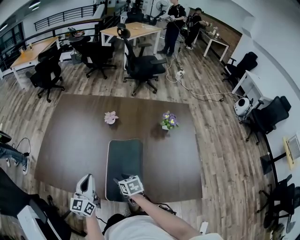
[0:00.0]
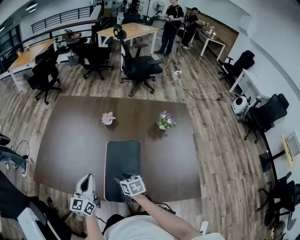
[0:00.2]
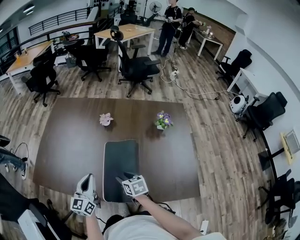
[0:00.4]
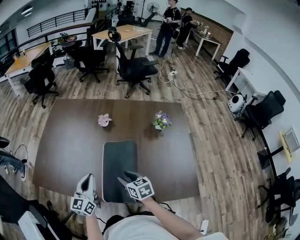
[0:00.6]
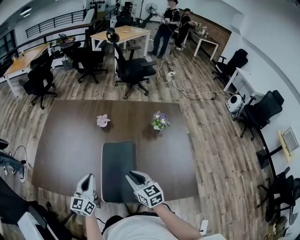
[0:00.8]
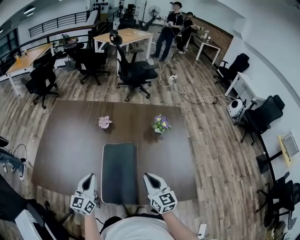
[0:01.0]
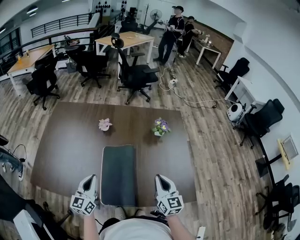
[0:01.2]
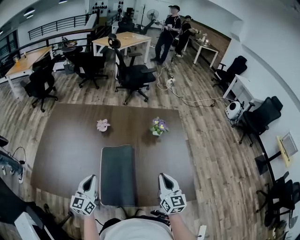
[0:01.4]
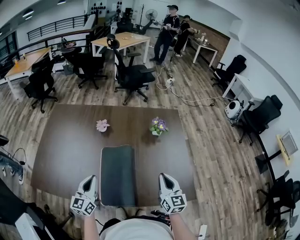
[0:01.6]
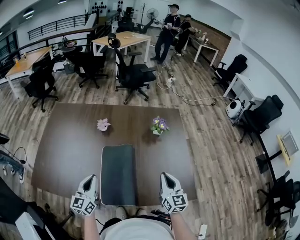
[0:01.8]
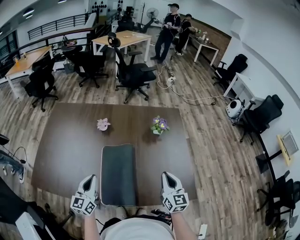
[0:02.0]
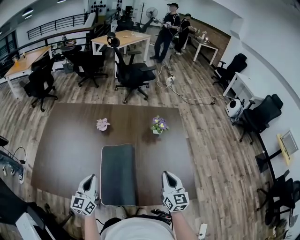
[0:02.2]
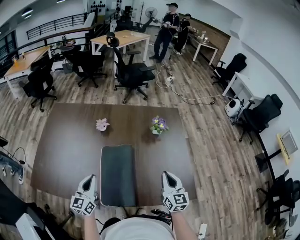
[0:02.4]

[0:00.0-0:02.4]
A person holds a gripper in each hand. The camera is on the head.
0:00.0 to 0:01.2: The right gripper is displaced to the right and upward by roughly 30 cm, angles its fingers upward, by roughly 40 degrees, and closes its fingers. Meanwhile the left gripper travels to the right by about 5 cm.
0:01.2 to 0:02.4: The grippers move only a little.

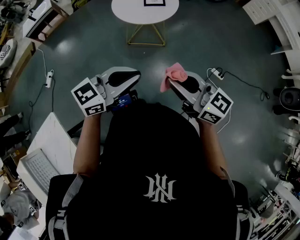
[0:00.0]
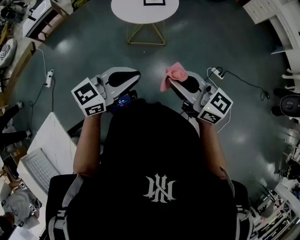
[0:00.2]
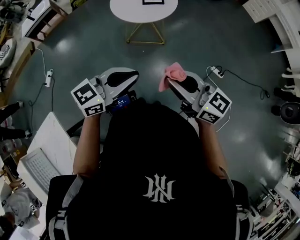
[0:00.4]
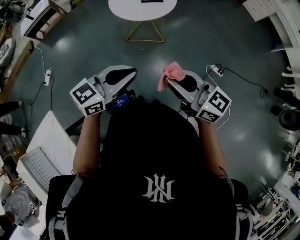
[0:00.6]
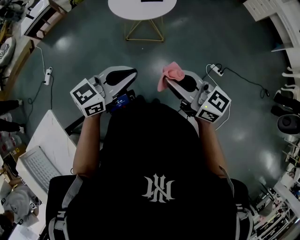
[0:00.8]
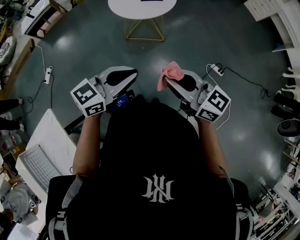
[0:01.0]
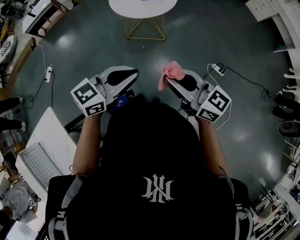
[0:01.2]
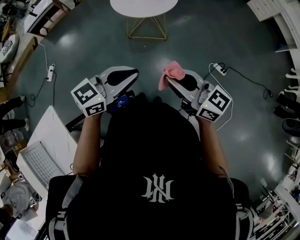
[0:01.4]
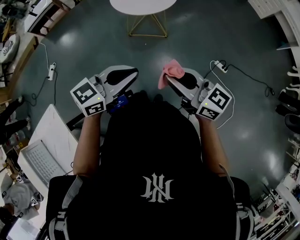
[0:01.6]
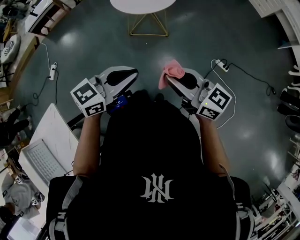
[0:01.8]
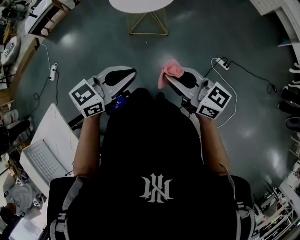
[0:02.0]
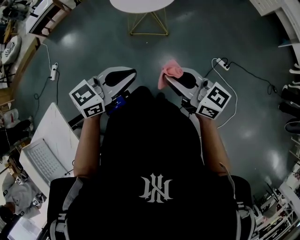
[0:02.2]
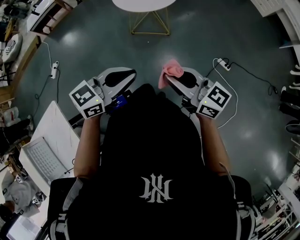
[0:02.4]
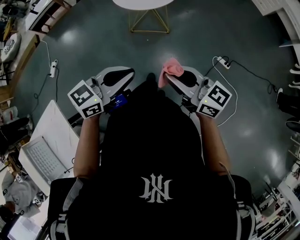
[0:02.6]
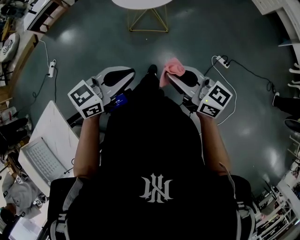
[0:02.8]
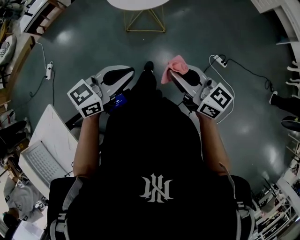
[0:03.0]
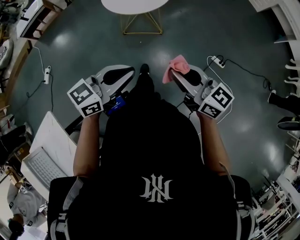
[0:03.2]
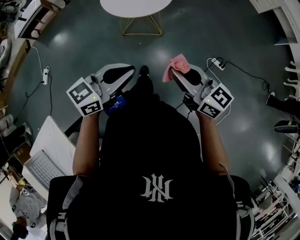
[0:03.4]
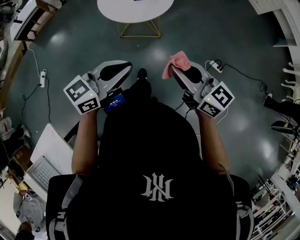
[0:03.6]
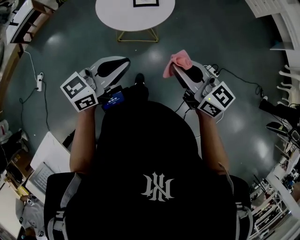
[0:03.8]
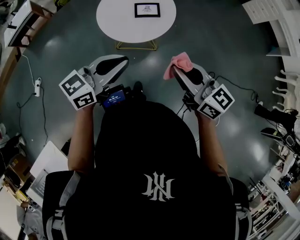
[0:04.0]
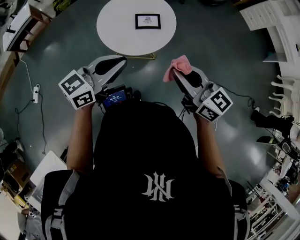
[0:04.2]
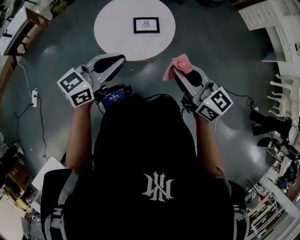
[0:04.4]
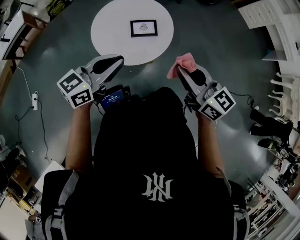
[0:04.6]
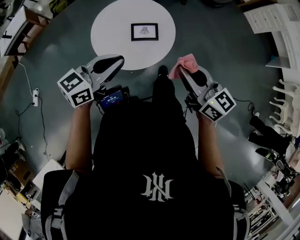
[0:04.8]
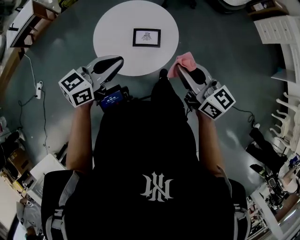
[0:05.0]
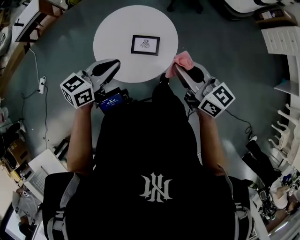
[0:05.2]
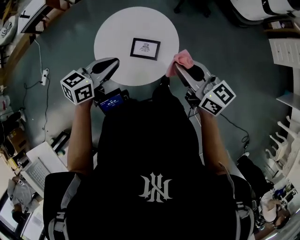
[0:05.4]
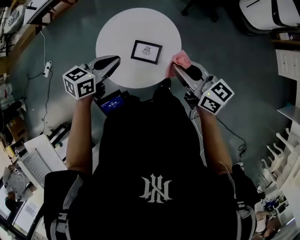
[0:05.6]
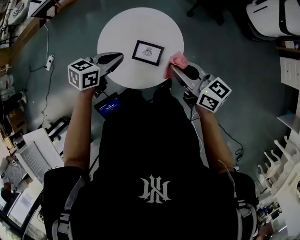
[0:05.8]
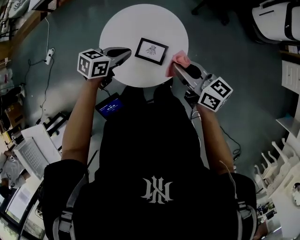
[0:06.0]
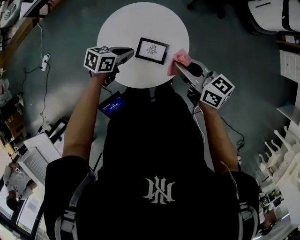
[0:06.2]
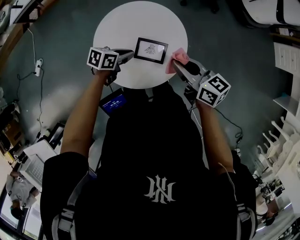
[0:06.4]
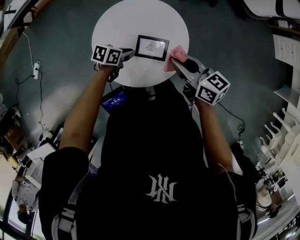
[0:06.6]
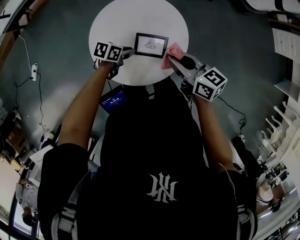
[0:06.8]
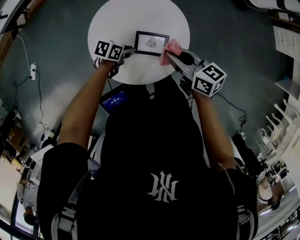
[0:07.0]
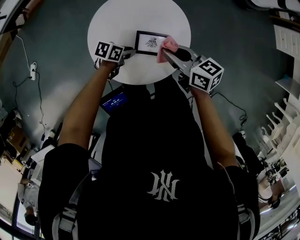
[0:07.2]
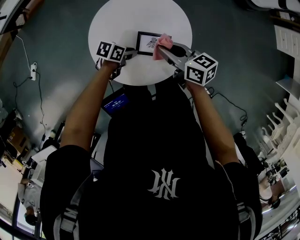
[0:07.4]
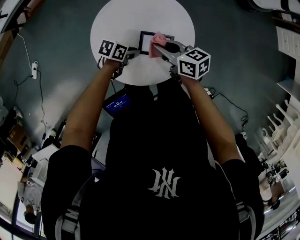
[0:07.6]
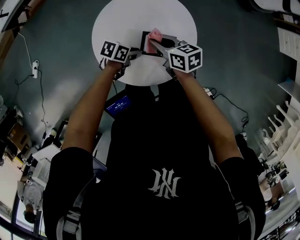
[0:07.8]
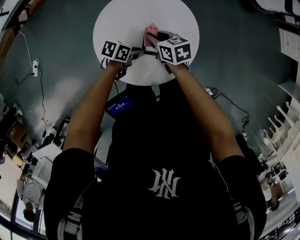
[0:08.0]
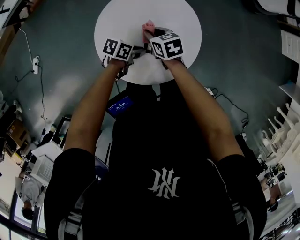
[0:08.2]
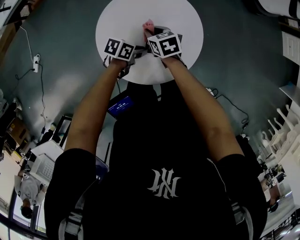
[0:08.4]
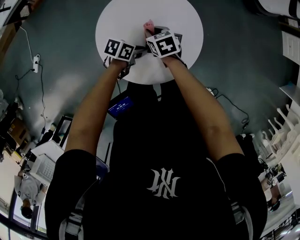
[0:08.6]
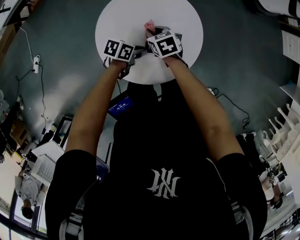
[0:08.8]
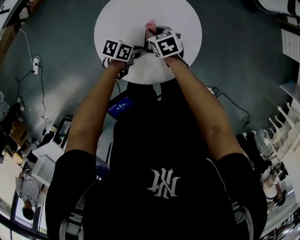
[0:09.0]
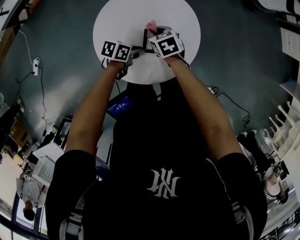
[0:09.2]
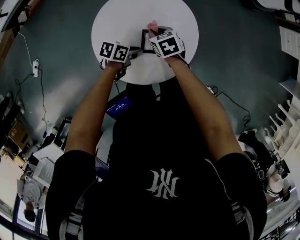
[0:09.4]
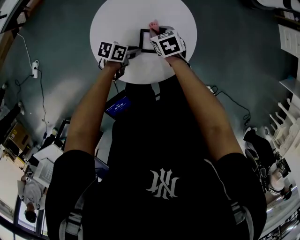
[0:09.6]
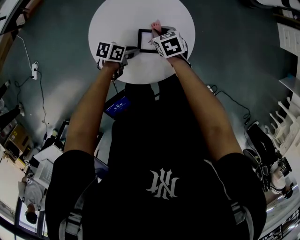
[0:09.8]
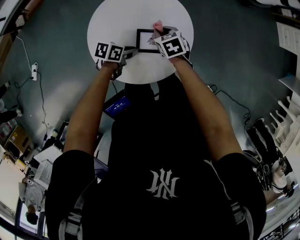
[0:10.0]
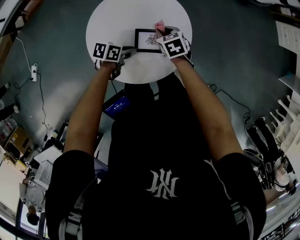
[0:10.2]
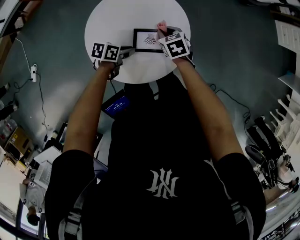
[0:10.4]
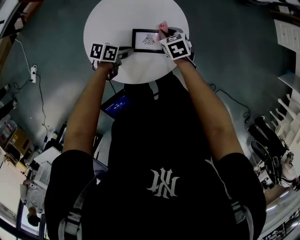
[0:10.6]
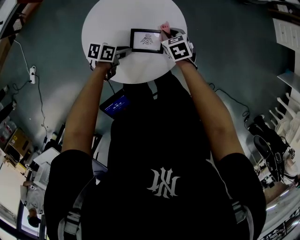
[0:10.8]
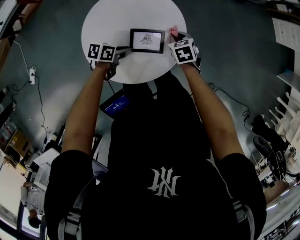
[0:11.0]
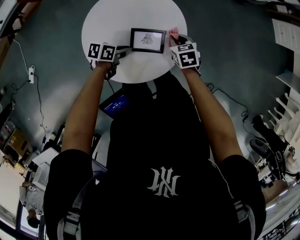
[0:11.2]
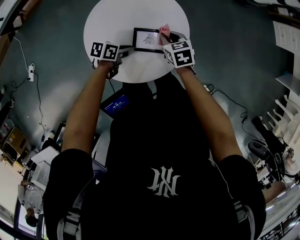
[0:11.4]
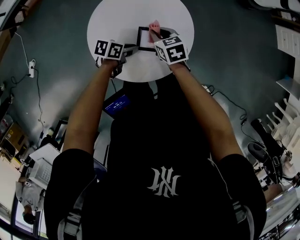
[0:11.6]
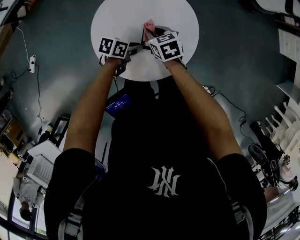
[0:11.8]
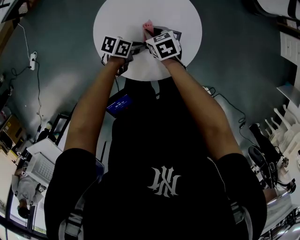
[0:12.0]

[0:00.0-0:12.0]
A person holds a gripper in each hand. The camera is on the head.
0:00.0 to 0:01.6: The grippers make only small movements.
0:01.6 to 0:03.0: The grippers make only small movements.
0:03.0 to 0:04.4: Both grippers move forward, some 40 cm.
0:04.4 to 0:06.0: The right gripper ends up about 35 cm from where it was, and rotates approximately 30 degrees. The left gripper ends up about 35 cm from where it was, and tips its fingers downward by roughly 30 degrees.
0:06.0 to 0:07.6: The grippers both shift downward by approximately 15 cm. The left gripper swivels roughly 30 degrees.
0:07.6 to 0:09.0: The right gripper goes approximately 10 cm downward, and changes its angle by roughly 30 degrees.
0:09.0 to 0:10.4: The right gripper shifts by some 10 cm.
0:10.4 to 0:12.0: The right gripper ends up about 10 cm from where it was.

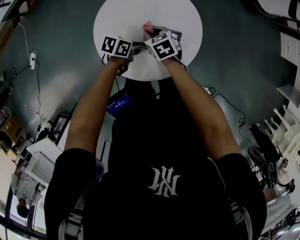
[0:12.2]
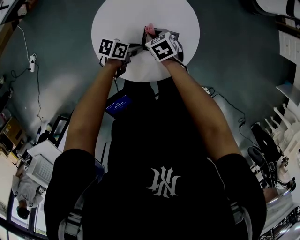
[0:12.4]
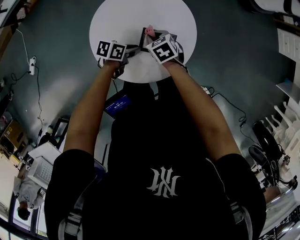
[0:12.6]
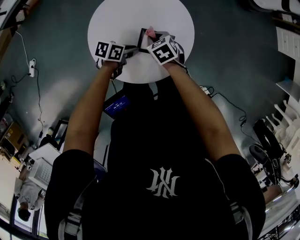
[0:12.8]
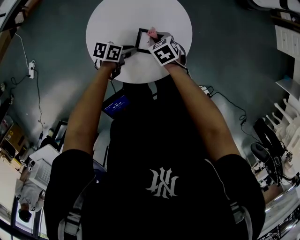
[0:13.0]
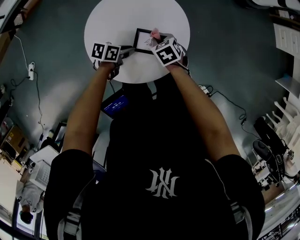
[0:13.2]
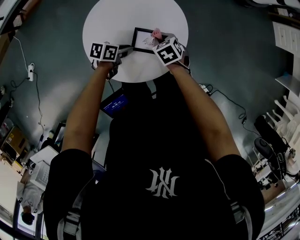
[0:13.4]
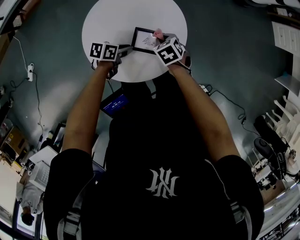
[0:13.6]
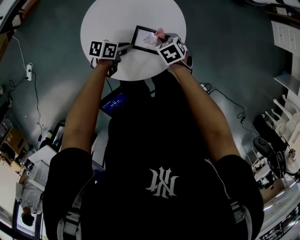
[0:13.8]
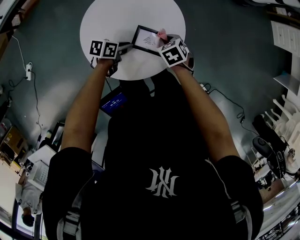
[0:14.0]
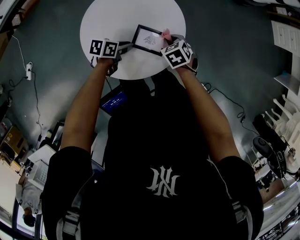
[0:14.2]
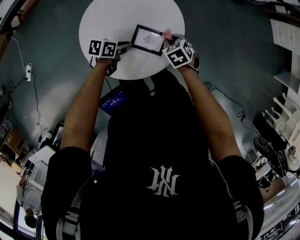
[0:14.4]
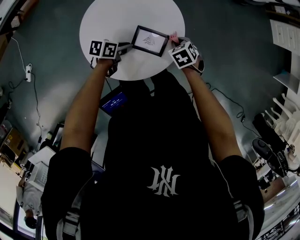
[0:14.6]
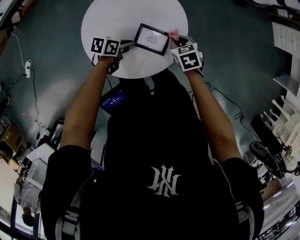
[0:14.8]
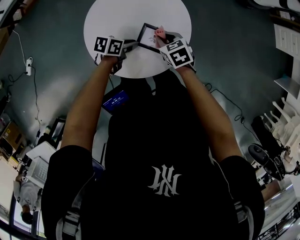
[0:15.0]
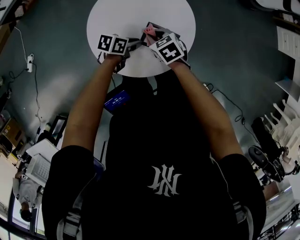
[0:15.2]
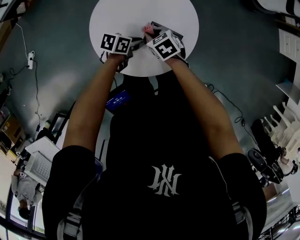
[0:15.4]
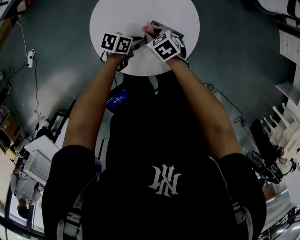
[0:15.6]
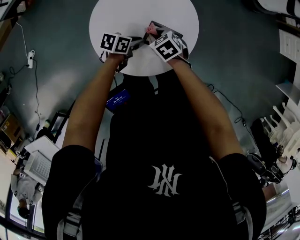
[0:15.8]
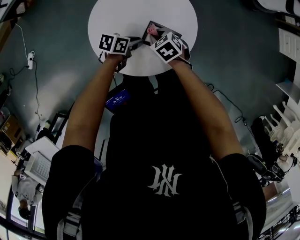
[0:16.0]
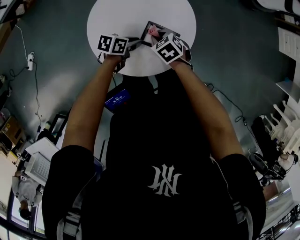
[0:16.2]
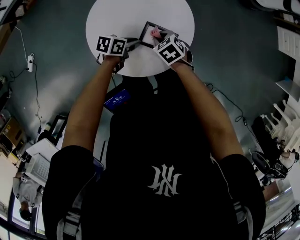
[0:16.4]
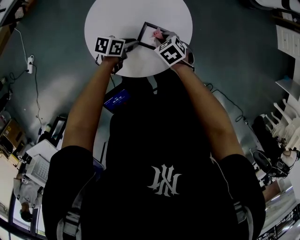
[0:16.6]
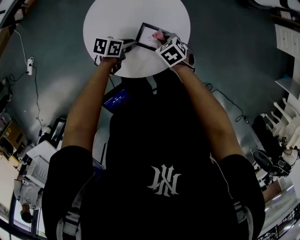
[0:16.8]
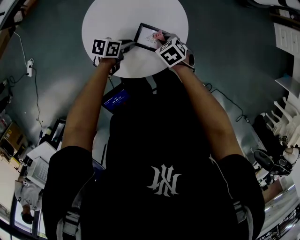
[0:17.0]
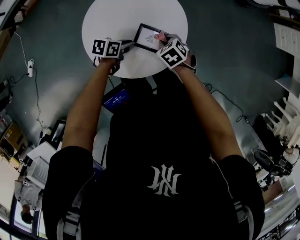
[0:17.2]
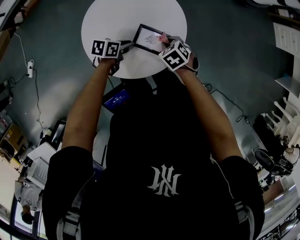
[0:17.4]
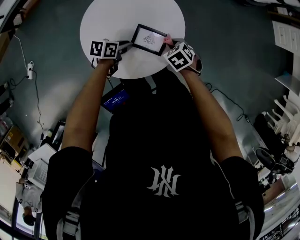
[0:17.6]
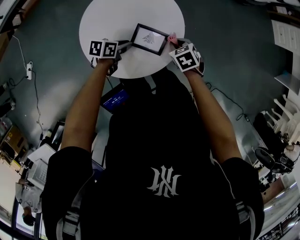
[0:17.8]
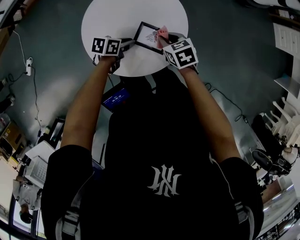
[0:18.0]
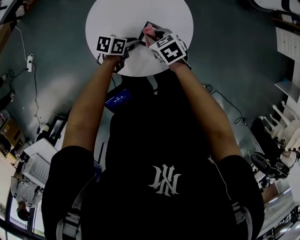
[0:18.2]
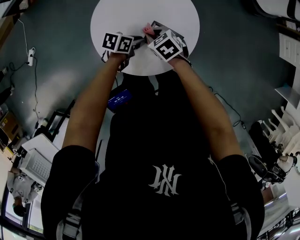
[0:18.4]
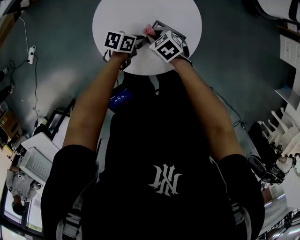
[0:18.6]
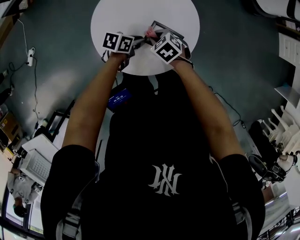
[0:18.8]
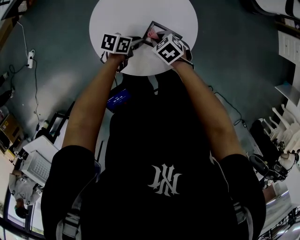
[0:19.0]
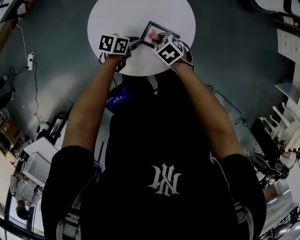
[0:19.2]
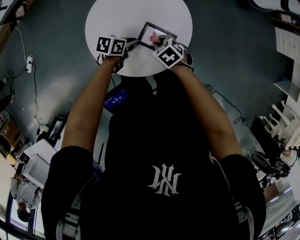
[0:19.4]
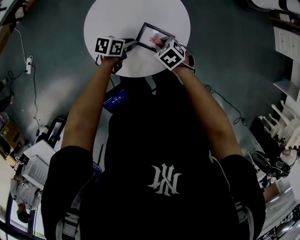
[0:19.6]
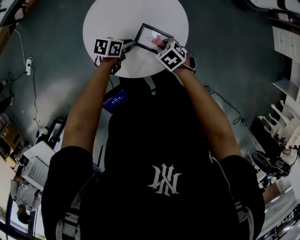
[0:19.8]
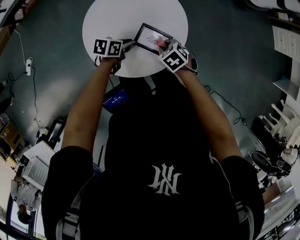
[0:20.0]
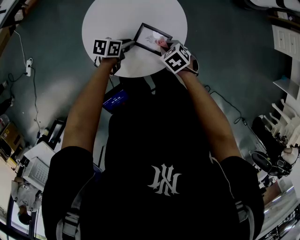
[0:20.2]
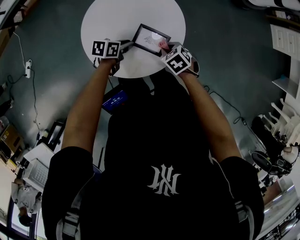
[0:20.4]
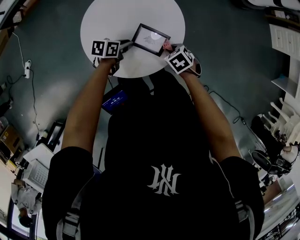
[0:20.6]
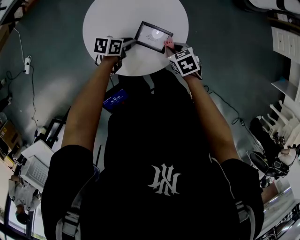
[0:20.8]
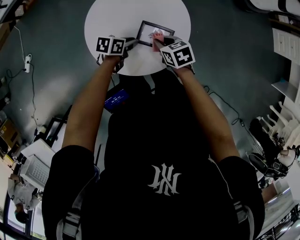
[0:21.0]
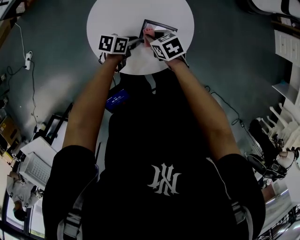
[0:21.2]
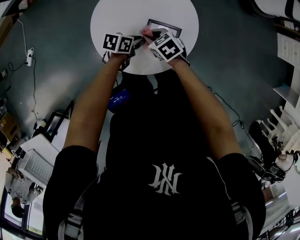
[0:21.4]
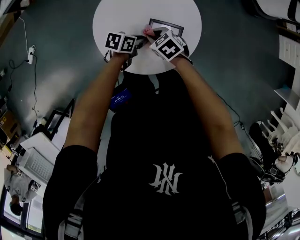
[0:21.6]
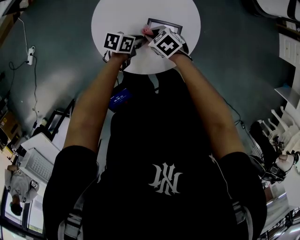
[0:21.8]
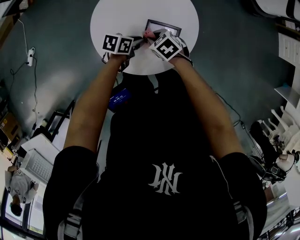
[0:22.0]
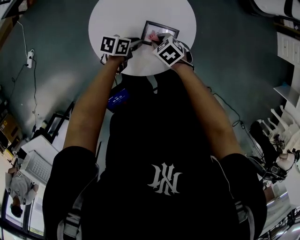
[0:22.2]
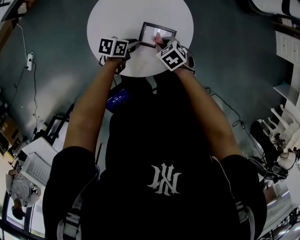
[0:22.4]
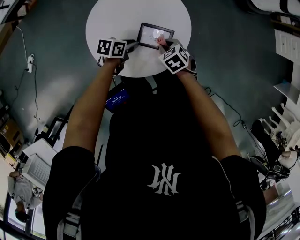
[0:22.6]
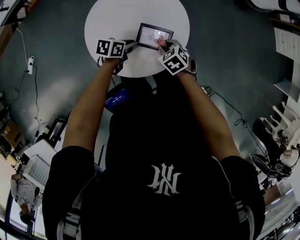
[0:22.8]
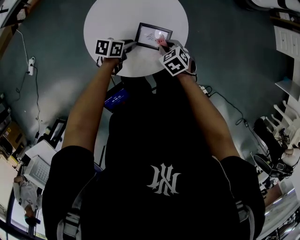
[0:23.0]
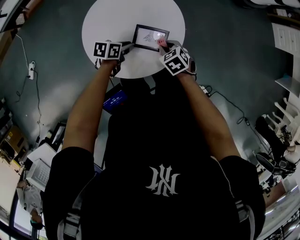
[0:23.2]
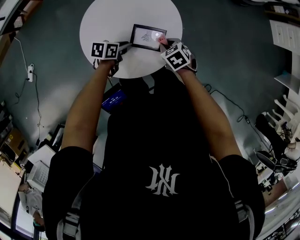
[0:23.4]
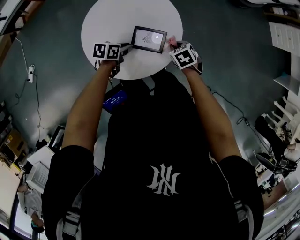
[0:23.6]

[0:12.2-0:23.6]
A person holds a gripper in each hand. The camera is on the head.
0:12.2 to 0:13.6: The right gripper changes place by some 10 cm.
0:16.4 to 0:17.8: The right gripper ends up about 10 cm from where it was.
0:19.4 to 0:20.8: The right gripper shifts by roughly 10 cm.
0:20.8 to 0:22.2: The right gripper ends up some 10 cm from where it was.
0:22.2 to 0:23.6: The right gripper moves some 15 cm, and swivels roughly 20 degrees.
